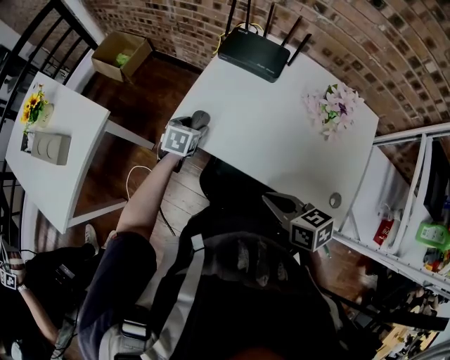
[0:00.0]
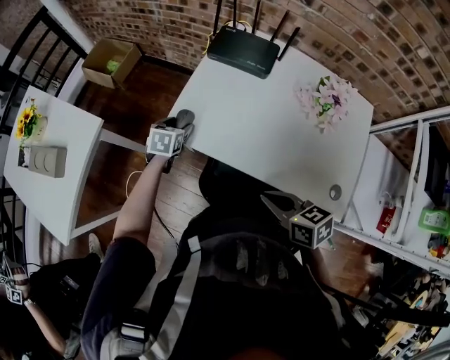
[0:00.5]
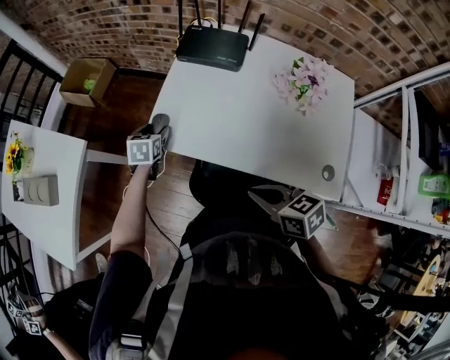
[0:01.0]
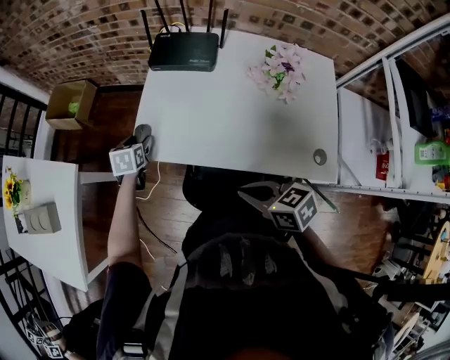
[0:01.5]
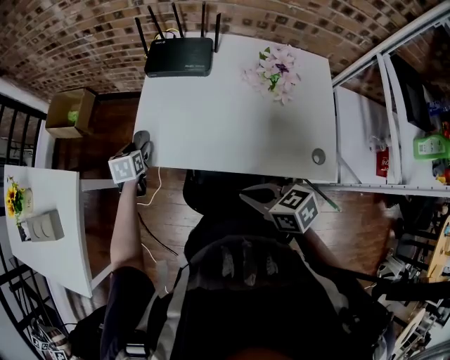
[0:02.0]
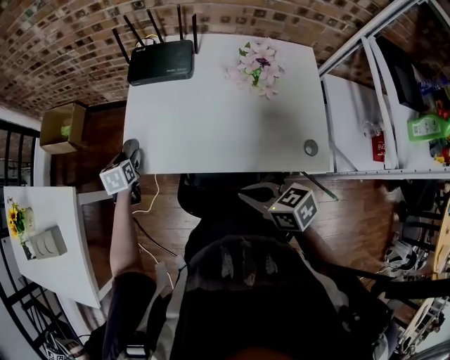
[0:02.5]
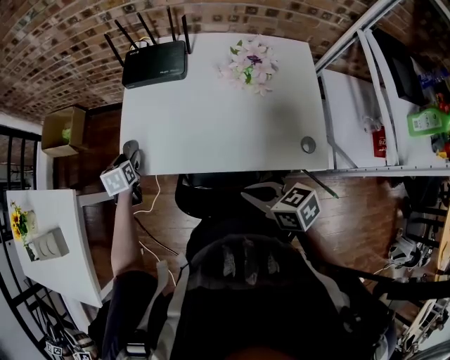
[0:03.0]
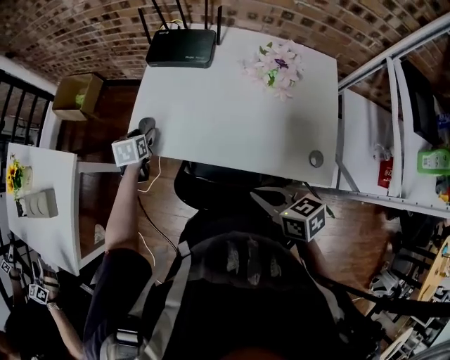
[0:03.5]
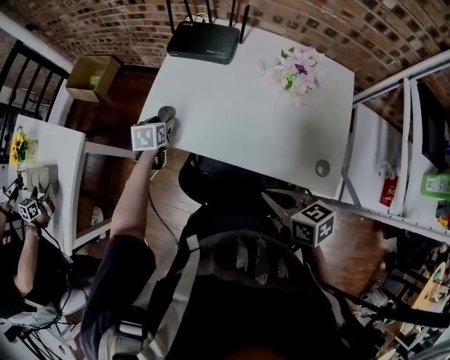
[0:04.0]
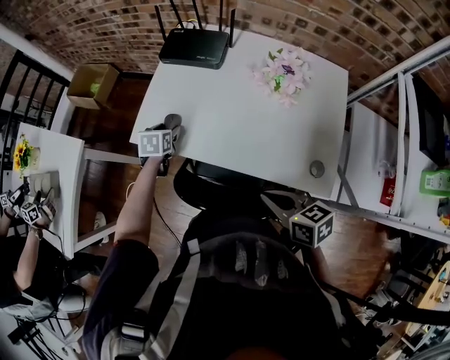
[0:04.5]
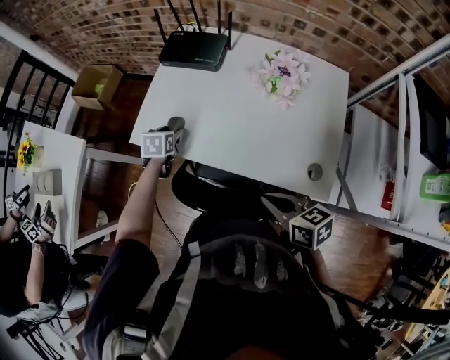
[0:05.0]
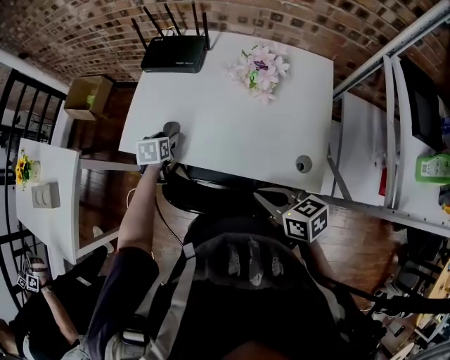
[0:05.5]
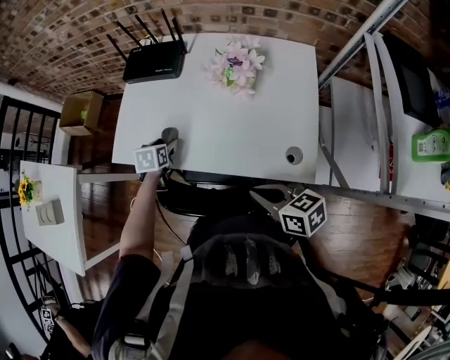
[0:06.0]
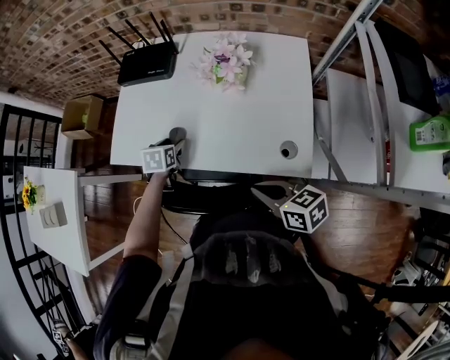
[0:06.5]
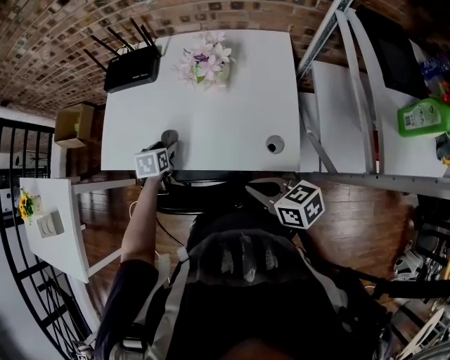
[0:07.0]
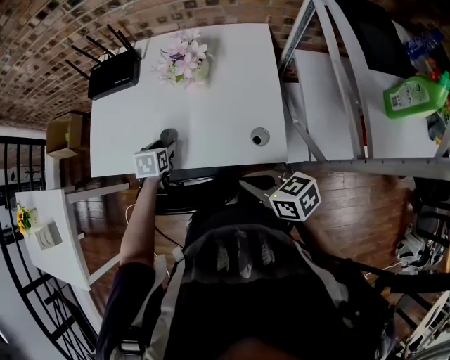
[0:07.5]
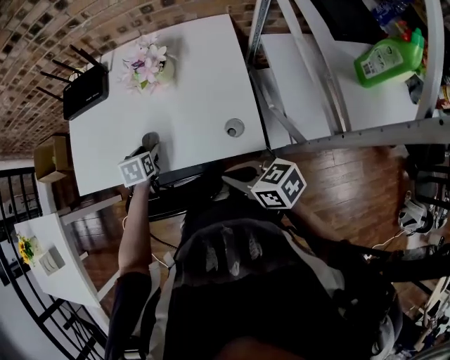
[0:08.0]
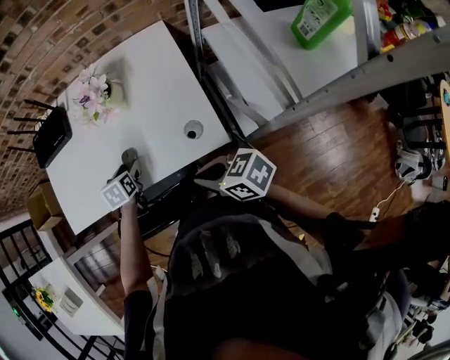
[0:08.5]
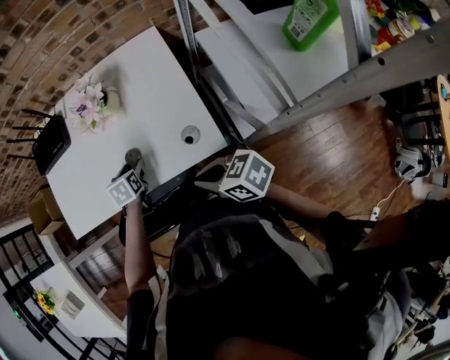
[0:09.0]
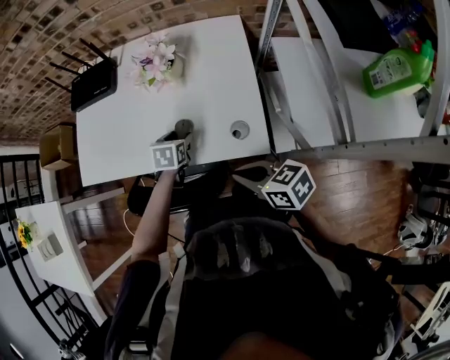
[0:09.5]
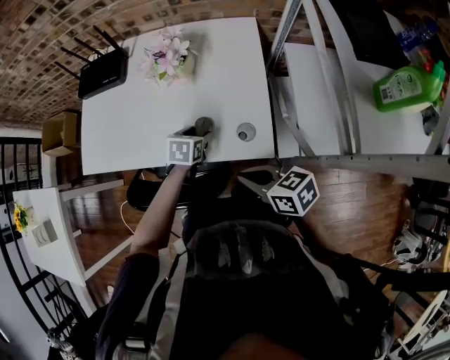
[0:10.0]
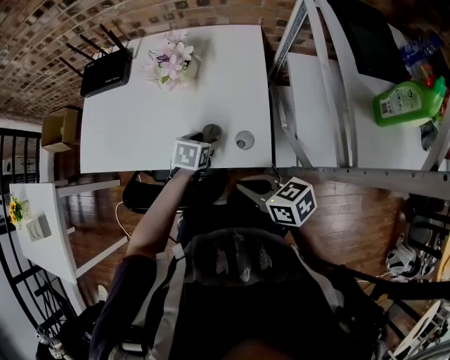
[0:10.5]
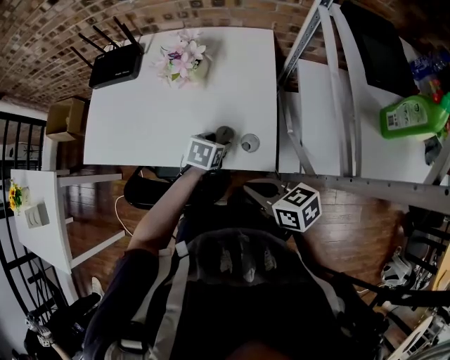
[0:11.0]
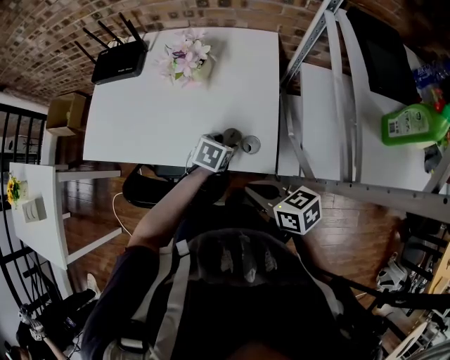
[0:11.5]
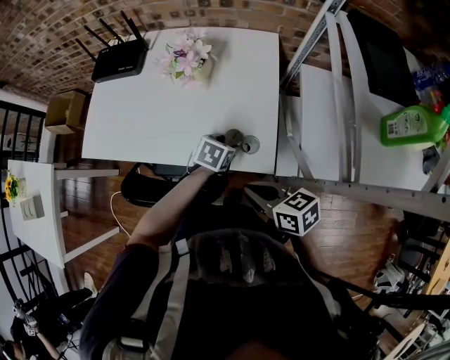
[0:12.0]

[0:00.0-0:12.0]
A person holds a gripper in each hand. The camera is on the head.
0:00.0 to 0:02.0: The left gripper changes place by some 5 cm.
0:02.0 to 0:04.0: The two grippers go roughly 5 cm to the right.
0:04.0 to 0:06.0: The right gripper heads to the right, covering some 10 cm, while the left gripper travels to the right and backward by about 15 cm.
0:06.0 to 0:08.0: The right gripper moves to the right, about 5 cm. The left gripper is displaced to the right and backward by about 15 cm.
0:08.0 to 0:10.0: The left gripper shifts approximately 15 cm to the right.
0:10.0 to 0:12.0: The left gripper heads to the right, covering roughly 5 cm.

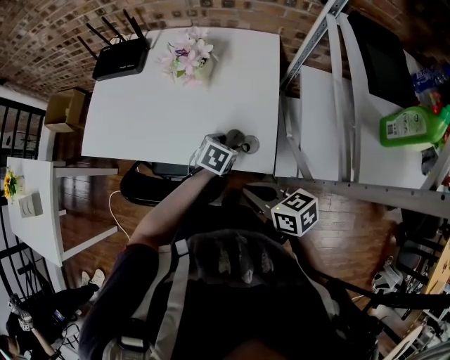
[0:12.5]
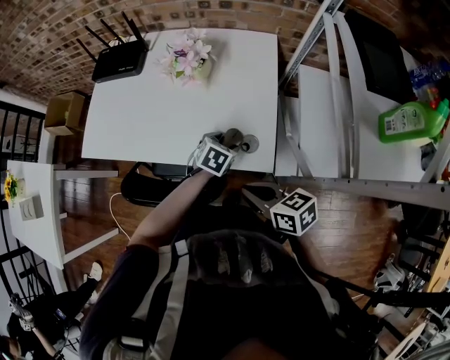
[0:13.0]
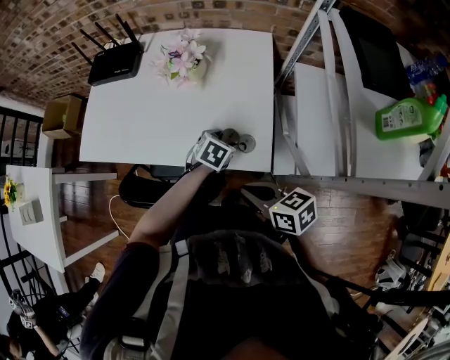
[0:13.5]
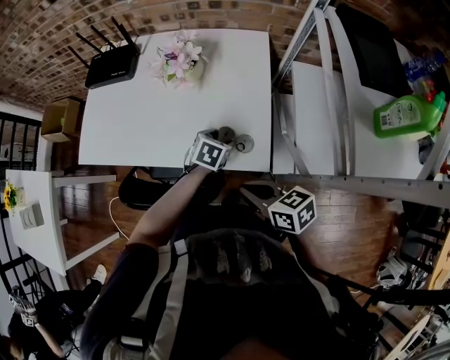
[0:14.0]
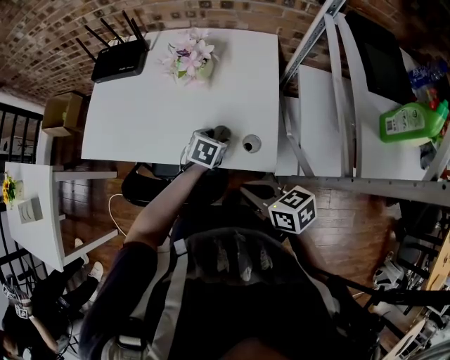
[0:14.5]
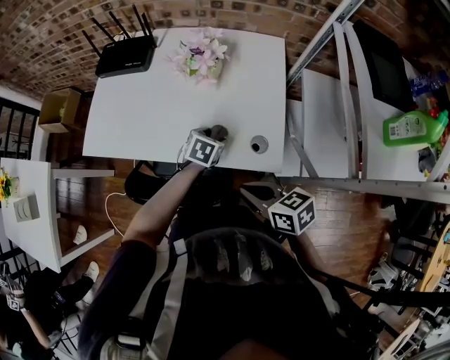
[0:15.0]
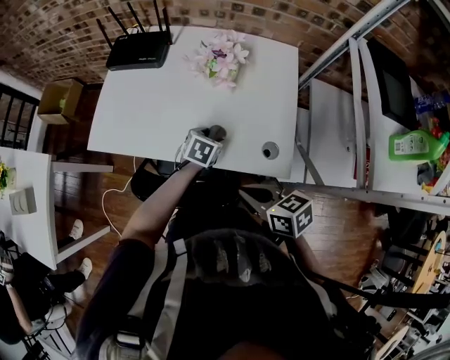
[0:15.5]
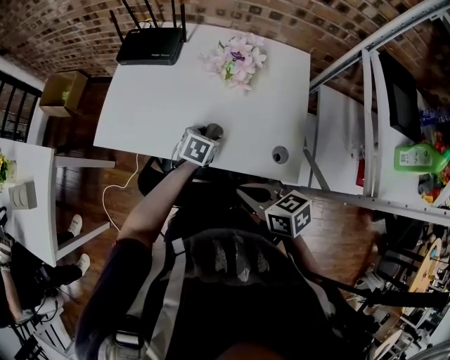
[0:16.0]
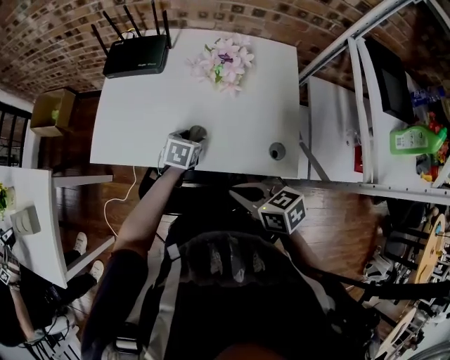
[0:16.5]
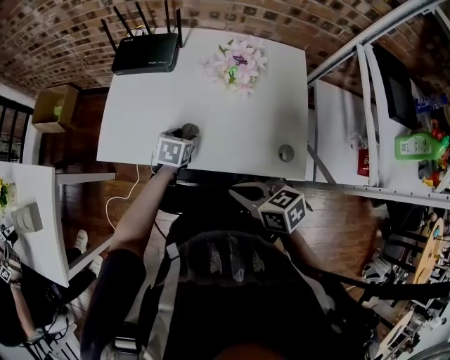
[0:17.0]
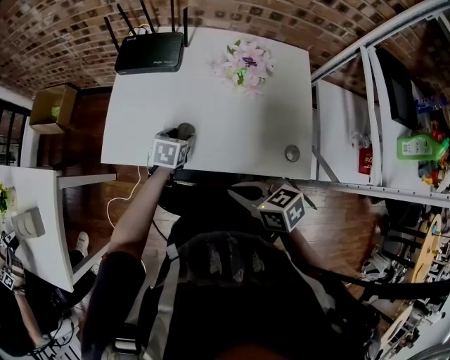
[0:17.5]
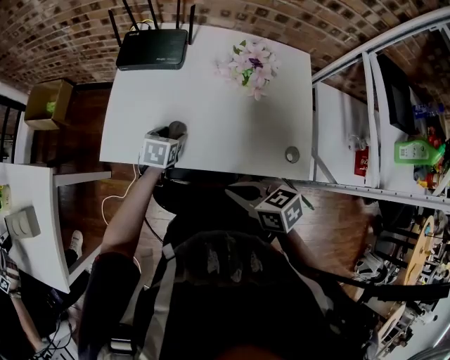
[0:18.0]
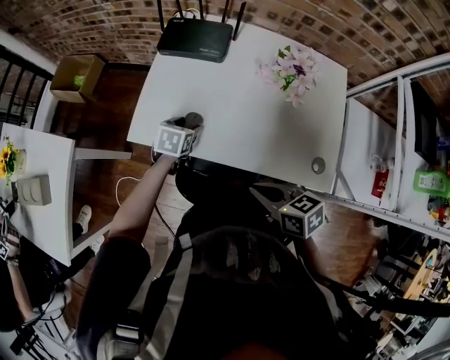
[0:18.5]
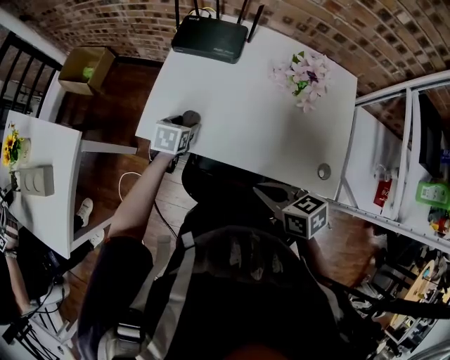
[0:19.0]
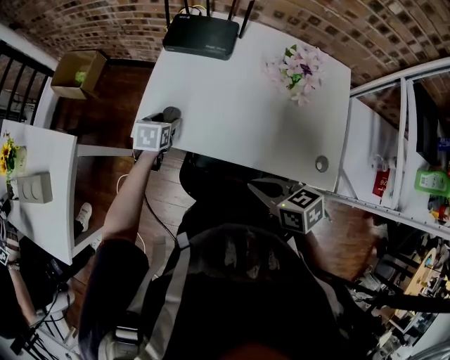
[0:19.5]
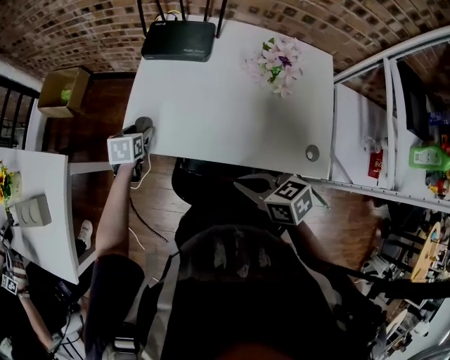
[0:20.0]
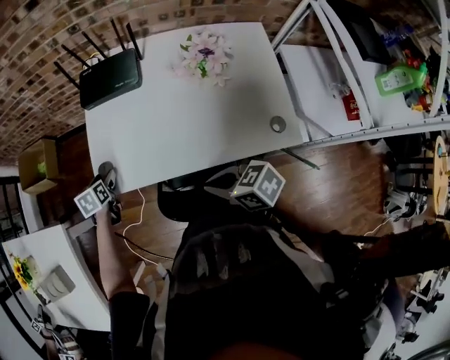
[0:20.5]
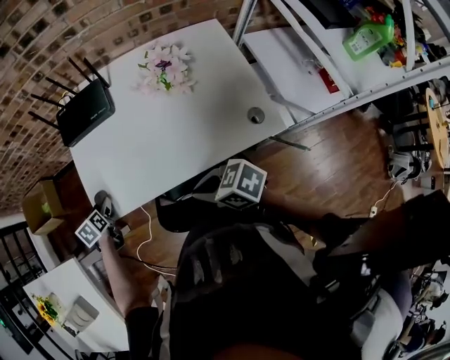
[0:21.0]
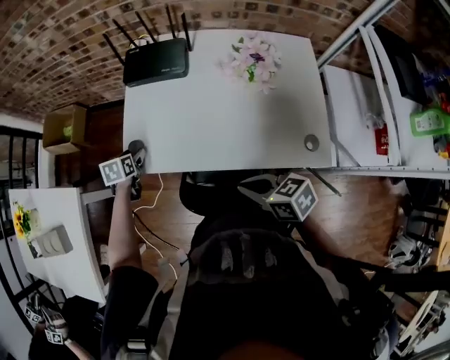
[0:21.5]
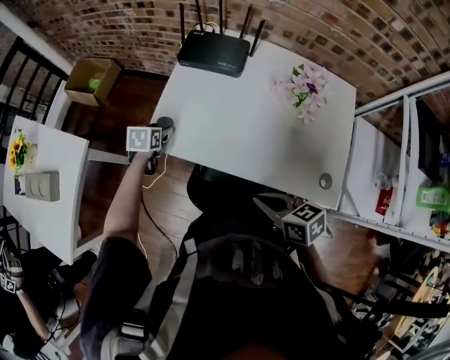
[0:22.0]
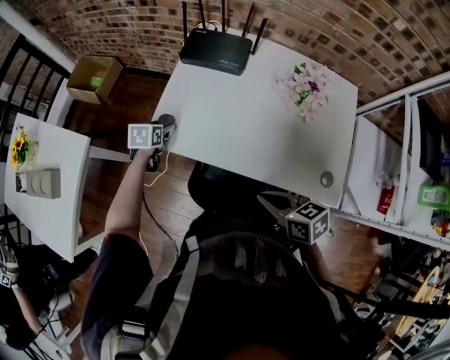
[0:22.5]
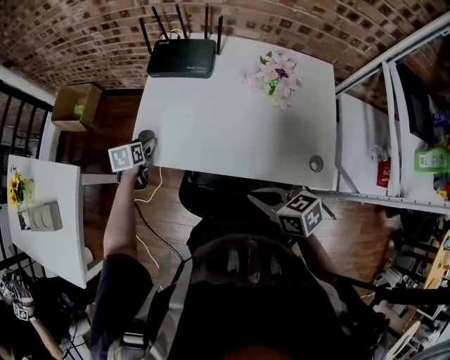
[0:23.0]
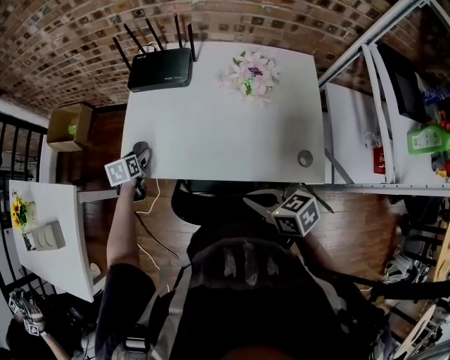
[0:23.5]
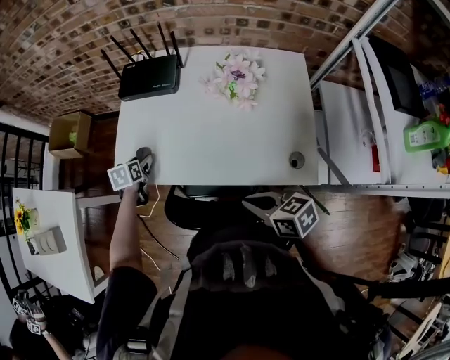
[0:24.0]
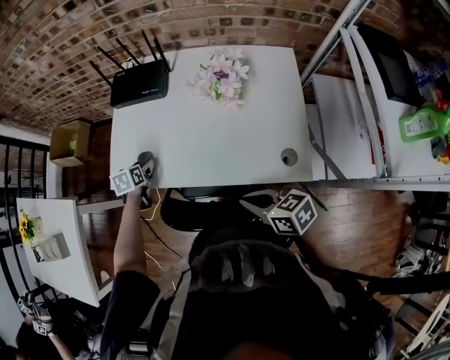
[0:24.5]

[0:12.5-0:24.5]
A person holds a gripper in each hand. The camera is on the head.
0:12.5 to 0:14.5: The left gripper changes place by about 5 cm.
0:14.5 to 0:16.5: The two grippers go roughly 15 cm to the left.
0:16.5 to 0:18.5: The right gripper moves to the left, some 10 cm. Meanwhile the left gripper heads to the left, covering some 20 cm.
0:18.5 to 0:20.5: The left gripper moves to the left and forward, some 15 cm.
0:20.5 to 0:22.5: The grippers move only a little.
0:22.5 to 0:24.5: The two grippers go approximately 10 cm to the right and backward.

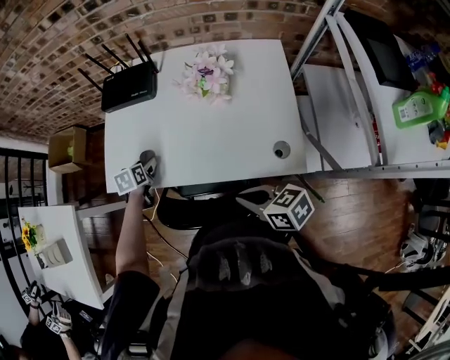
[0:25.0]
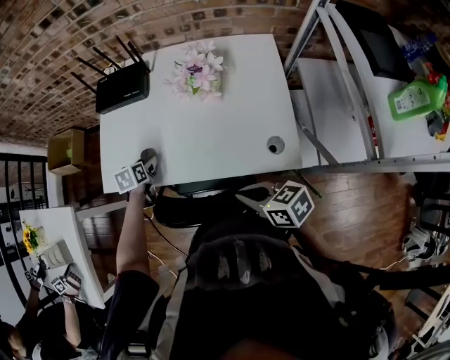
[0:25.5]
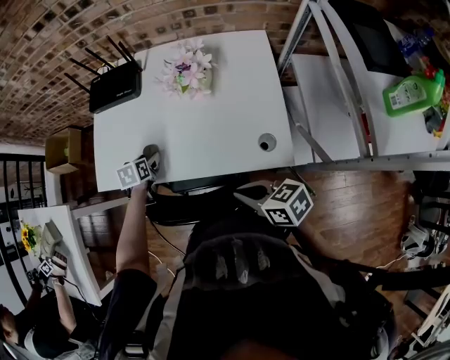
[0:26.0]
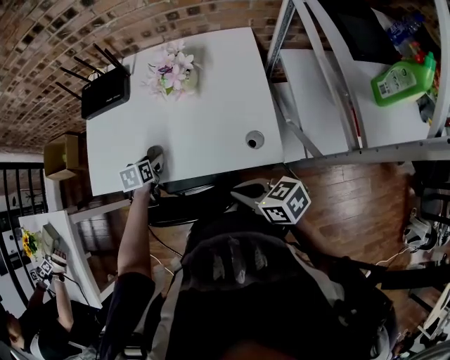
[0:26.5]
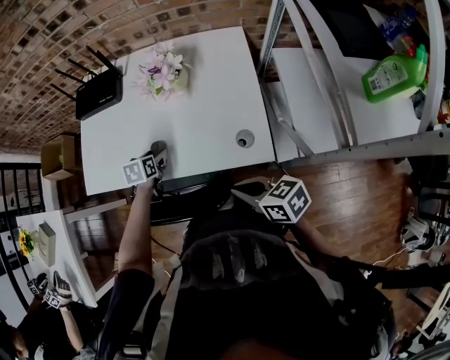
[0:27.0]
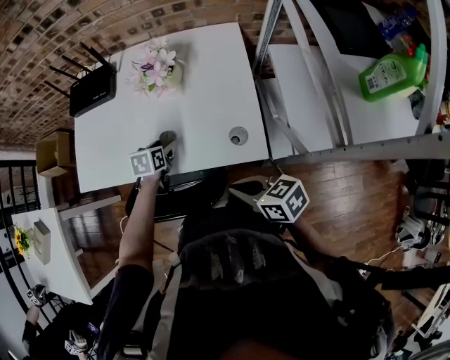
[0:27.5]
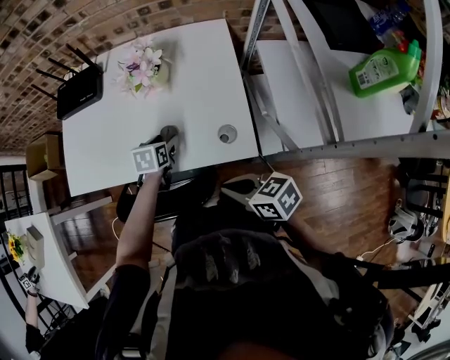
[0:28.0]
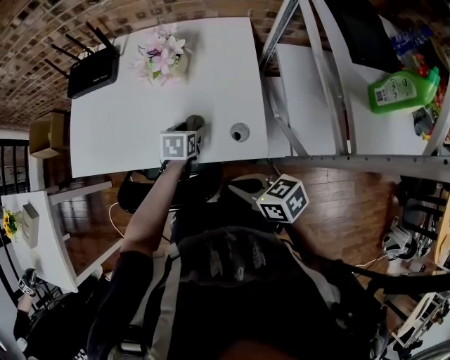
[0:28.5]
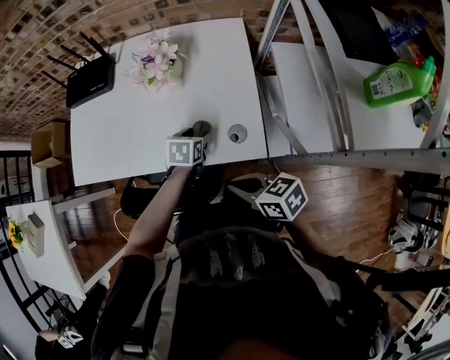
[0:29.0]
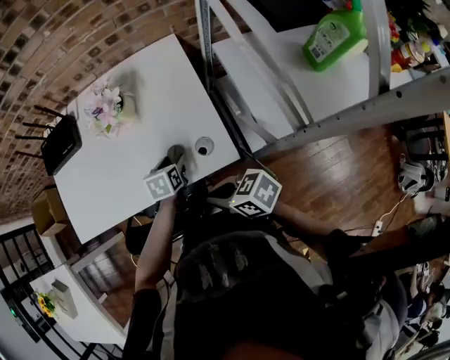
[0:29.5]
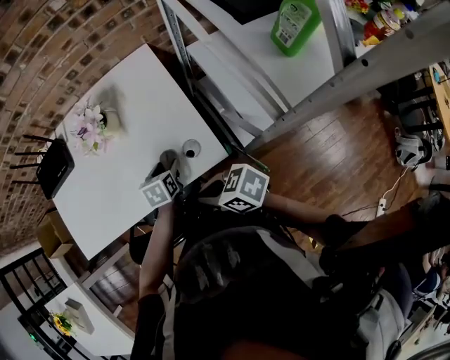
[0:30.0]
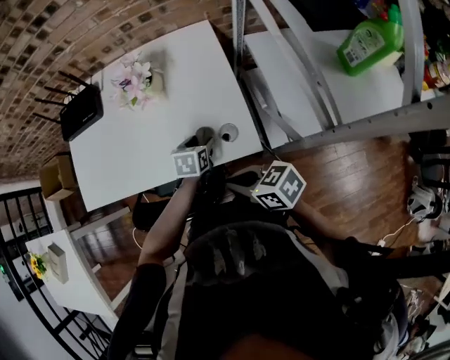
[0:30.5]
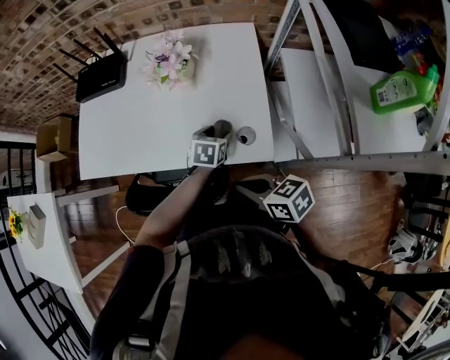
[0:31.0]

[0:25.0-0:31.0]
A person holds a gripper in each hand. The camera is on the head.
0:25.0 to 0:27.0: The left gripper goes some 20 cm to the right and backward; the right gripper goes some 10 cm to the right and backward.
0:27.0 to 0:29.0: The left gripper moves to the right, roughly 20 cm.
0:29.0 to 0:31.0: The grippers stay close to where they were, moving slightly.
